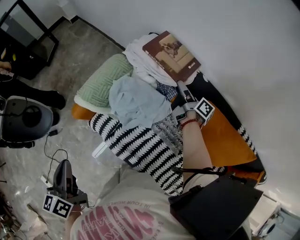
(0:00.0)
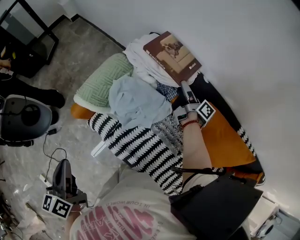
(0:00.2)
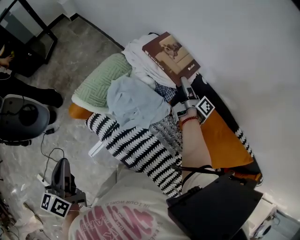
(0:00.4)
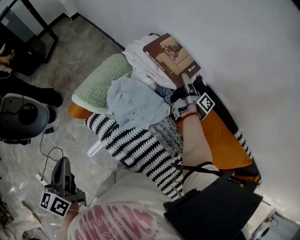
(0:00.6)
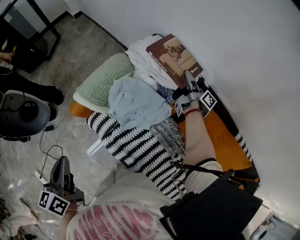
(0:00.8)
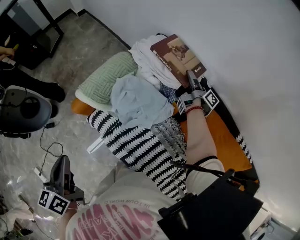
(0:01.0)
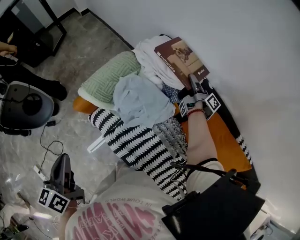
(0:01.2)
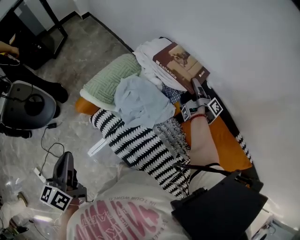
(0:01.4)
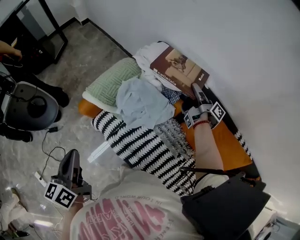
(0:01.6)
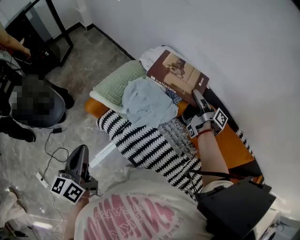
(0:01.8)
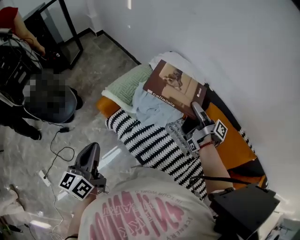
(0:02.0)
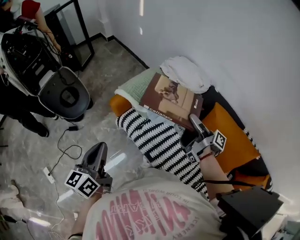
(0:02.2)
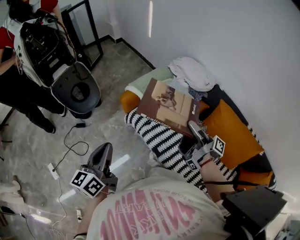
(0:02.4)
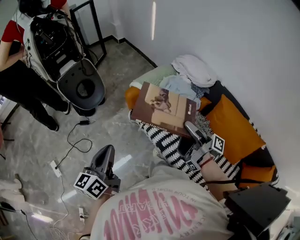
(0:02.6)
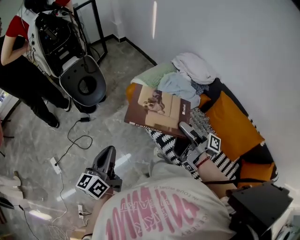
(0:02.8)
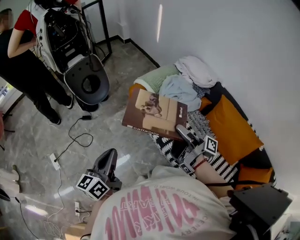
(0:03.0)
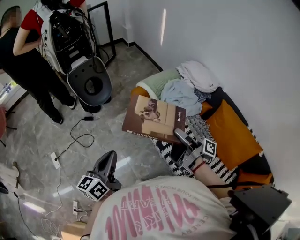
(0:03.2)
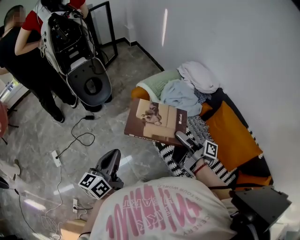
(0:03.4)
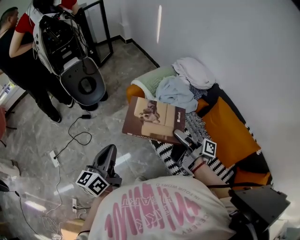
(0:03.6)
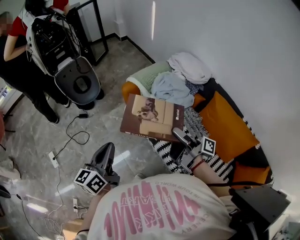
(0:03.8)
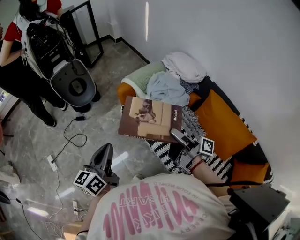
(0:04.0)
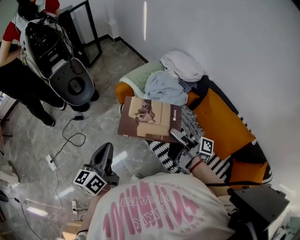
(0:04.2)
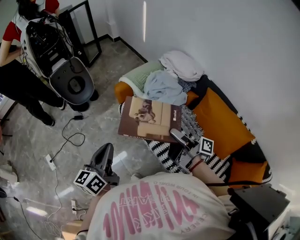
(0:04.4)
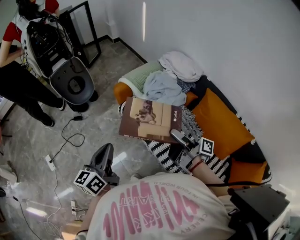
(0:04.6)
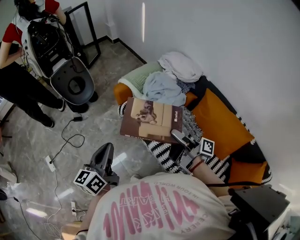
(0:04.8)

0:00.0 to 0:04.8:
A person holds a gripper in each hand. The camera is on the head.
0:00.0 to 0:01.6: The right gripper shifts some 5 cm upward.
0:01.6 to 0:03.2: The right gripper travels backward and to the left by approximately 50 cm, and swivels roughly 40 degrees; the left gripper heads backward, covering some 30 cm.
0:03.2 to 0:04.8: Both grippers move to the right, some 10 cm.

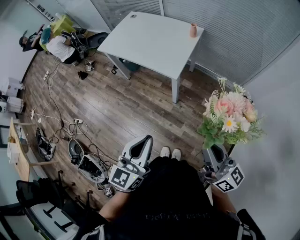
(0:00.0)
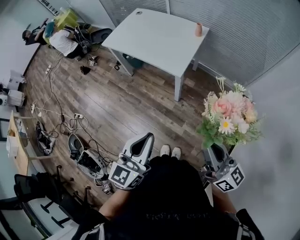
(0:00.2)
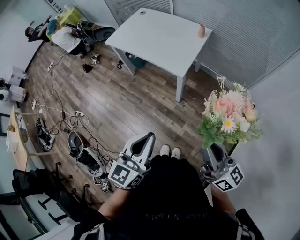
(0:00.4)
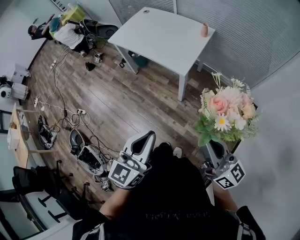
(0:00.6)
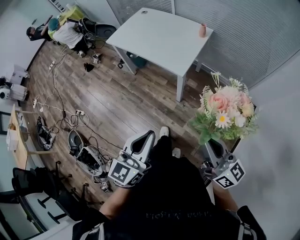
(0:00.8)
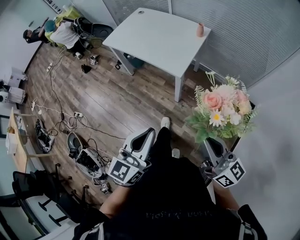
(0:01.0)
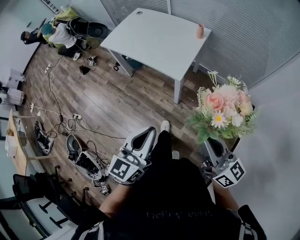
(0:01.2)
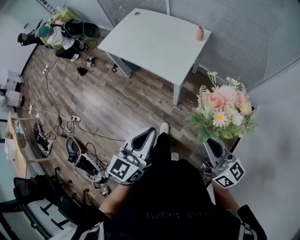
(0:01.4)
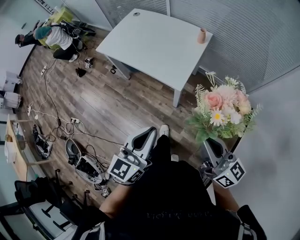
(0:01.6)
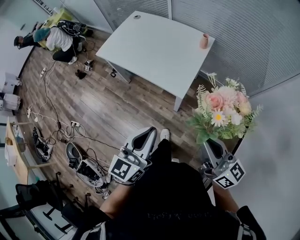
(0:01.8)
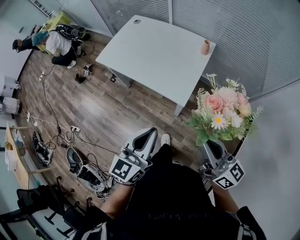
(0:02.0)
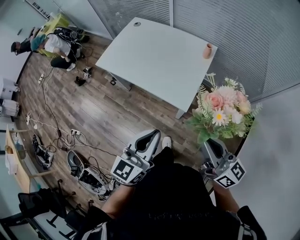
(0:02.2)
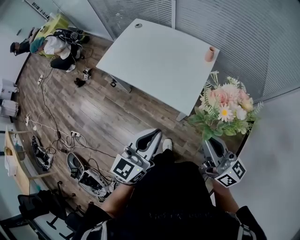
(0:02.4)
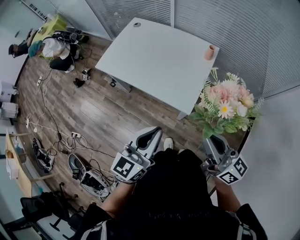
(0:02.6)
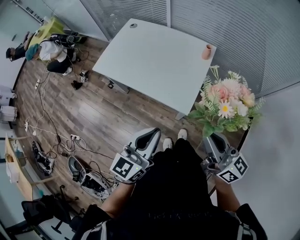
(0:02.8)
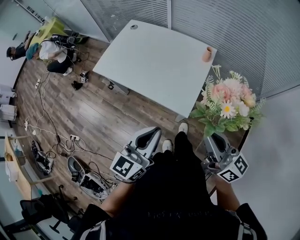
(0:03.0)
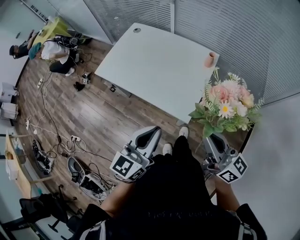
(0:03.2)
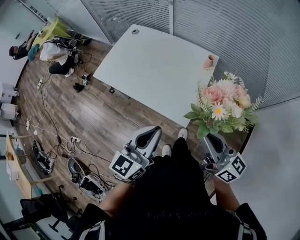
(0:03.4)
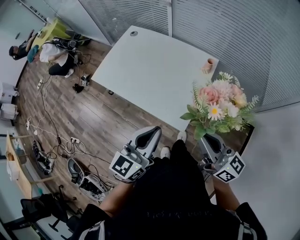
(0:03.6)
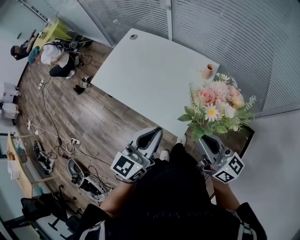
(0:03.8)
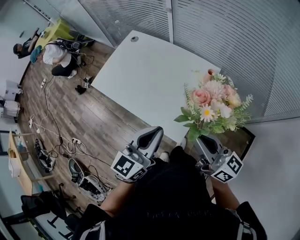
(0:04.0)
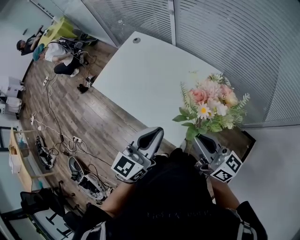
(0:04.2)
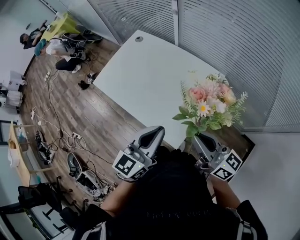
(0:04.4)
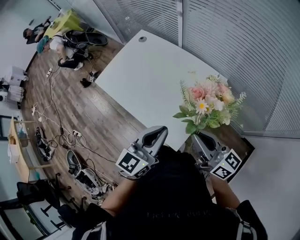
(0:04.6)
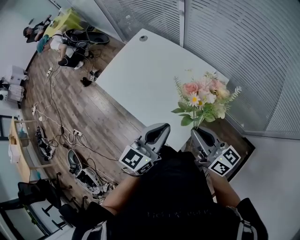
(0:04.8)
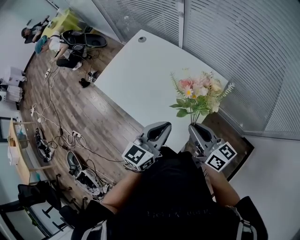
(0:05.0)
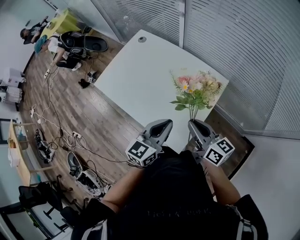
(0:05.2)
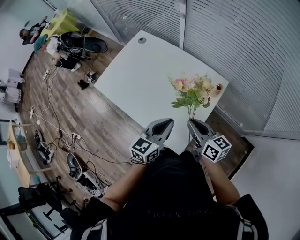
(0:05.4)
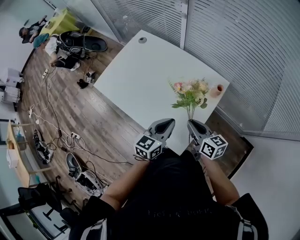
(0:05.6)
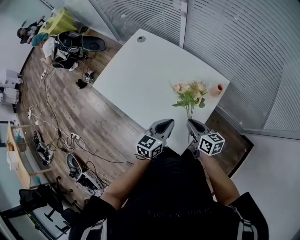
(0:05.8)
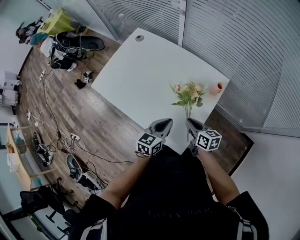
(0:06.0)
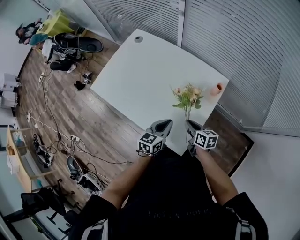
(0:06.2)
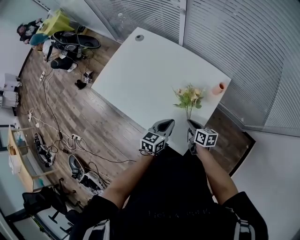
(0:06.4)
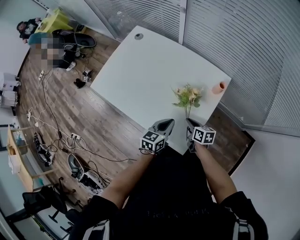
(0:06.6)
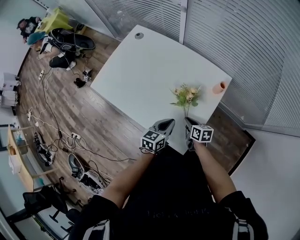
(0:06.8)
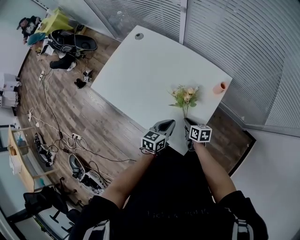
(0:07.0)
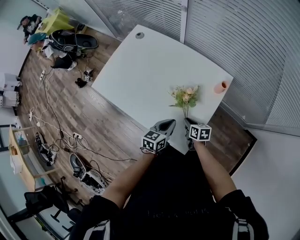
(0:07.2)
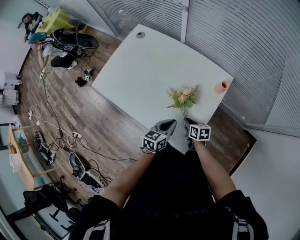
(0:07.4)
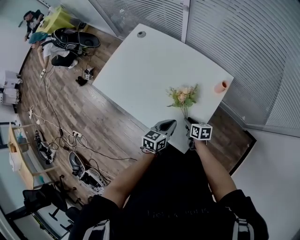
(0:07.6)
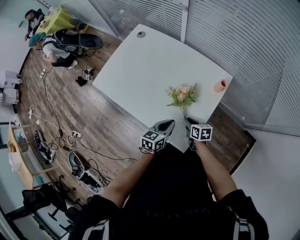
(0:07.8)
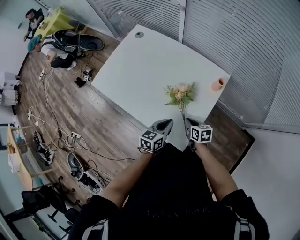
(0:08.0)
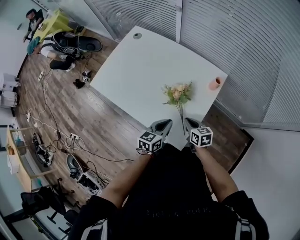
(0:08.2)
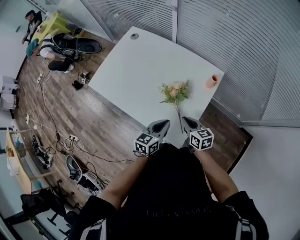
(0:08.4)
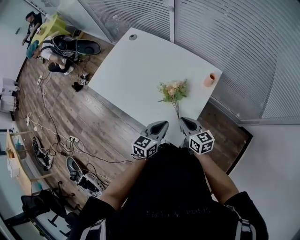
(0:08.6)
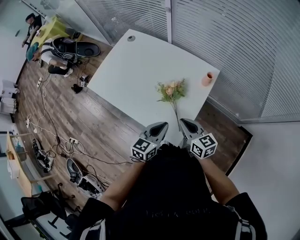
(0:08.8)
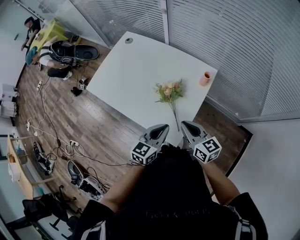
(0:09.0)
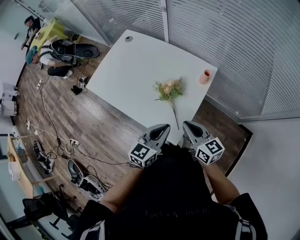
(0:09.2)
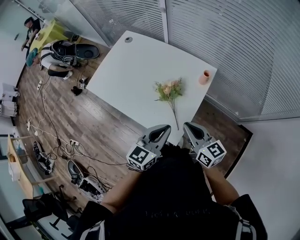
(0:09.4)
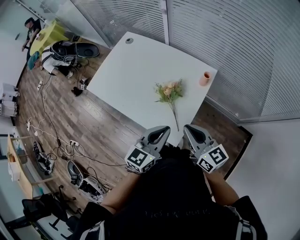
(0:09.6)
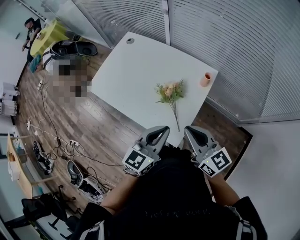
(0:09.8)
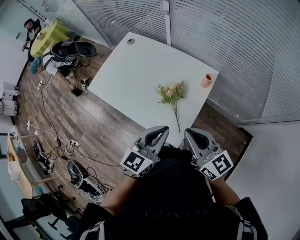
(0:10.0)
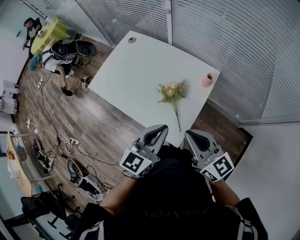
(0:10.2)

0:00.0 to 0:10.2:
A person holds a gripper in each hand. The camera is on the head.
0:00.0 to 0:01.4: The grippers both shift forward by some 10 cm.
0:01.4 to 0:03.0: The grippers both shift forward by approximately 20 cm.
0:03.0 to 0:04.4: The left gripper is displaced forward and to the right by some 20 cm, while the right gripper goes approximately 15 cm forward.
0:04.4 to 0:05.8: The grippers both shift downward and forward by approximately 20 cm. The right gripper angles its fingers downward, by some 30 degrees.
0:05.8 to 0:07.2: The left gripper goes roughly 5 cm downward, while the right gripper moves downward, approximately 15 cm, and changes its angle by roughly 20 degrees.
0:07.2 to 0:08.8: The left gripper moves upward and backward, roughly 10 cm. The right gripper goes roughly 20 cm upward, and swivels roughly 30 degrees.
0:08.8 to 0:10.2: Both grippers move upward, about 15 cm.

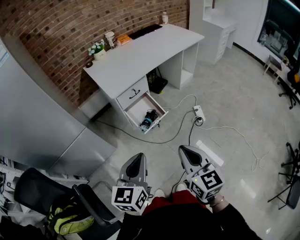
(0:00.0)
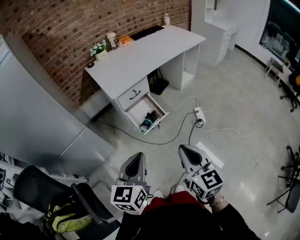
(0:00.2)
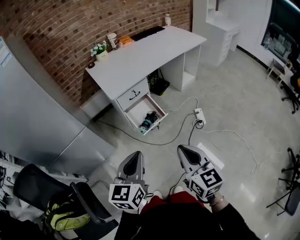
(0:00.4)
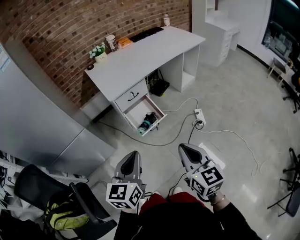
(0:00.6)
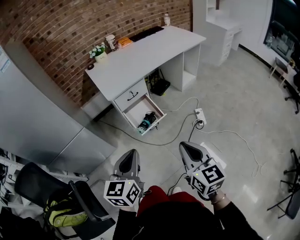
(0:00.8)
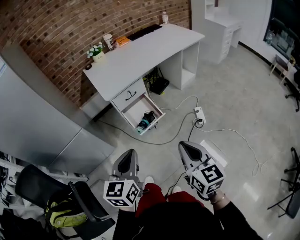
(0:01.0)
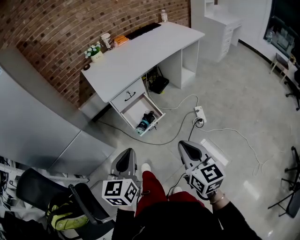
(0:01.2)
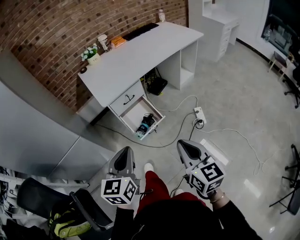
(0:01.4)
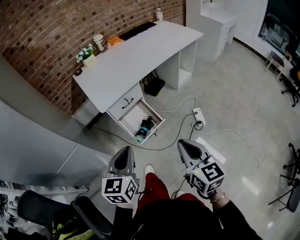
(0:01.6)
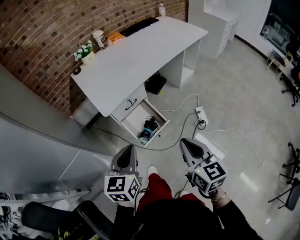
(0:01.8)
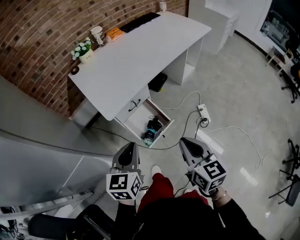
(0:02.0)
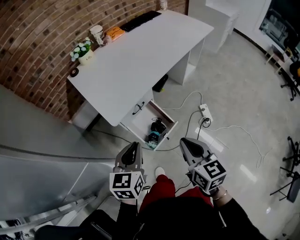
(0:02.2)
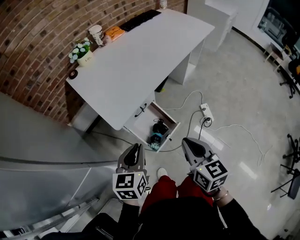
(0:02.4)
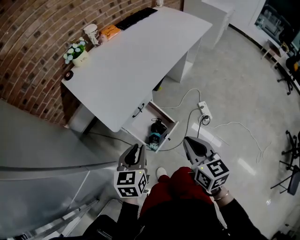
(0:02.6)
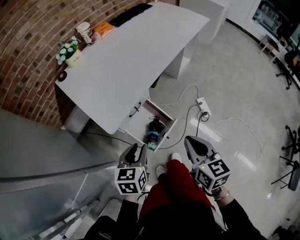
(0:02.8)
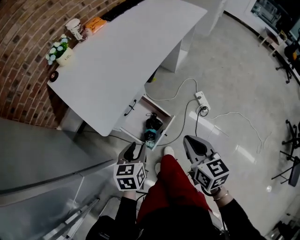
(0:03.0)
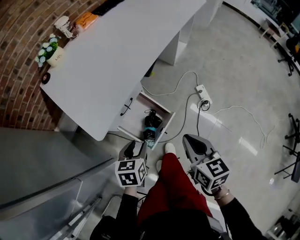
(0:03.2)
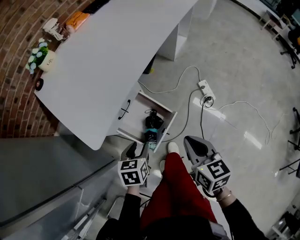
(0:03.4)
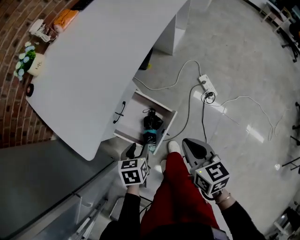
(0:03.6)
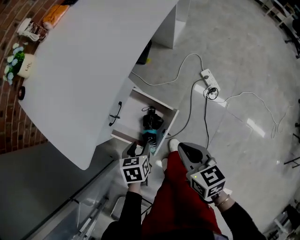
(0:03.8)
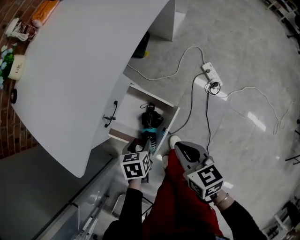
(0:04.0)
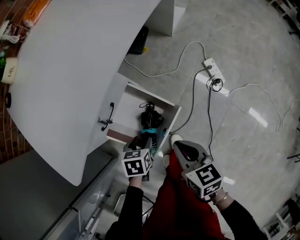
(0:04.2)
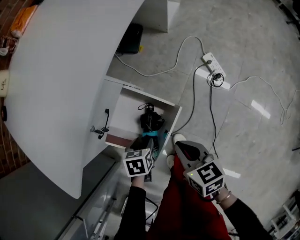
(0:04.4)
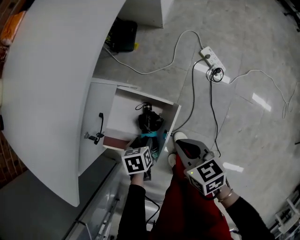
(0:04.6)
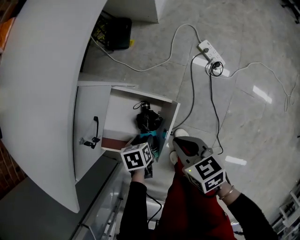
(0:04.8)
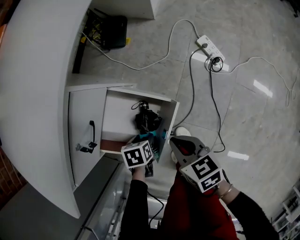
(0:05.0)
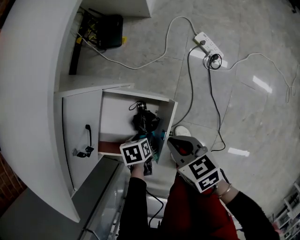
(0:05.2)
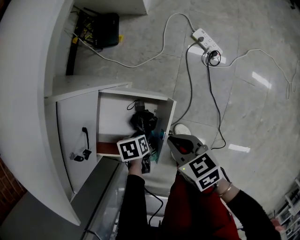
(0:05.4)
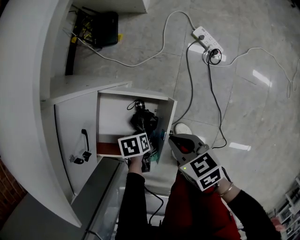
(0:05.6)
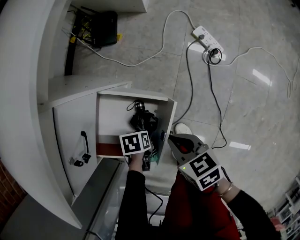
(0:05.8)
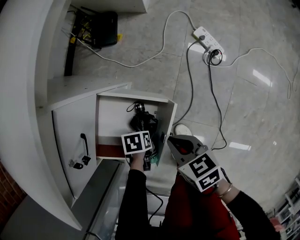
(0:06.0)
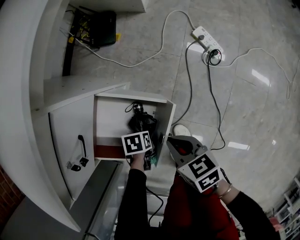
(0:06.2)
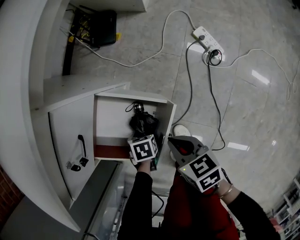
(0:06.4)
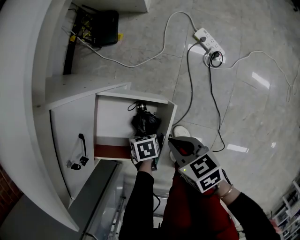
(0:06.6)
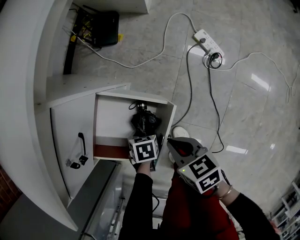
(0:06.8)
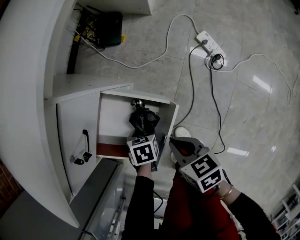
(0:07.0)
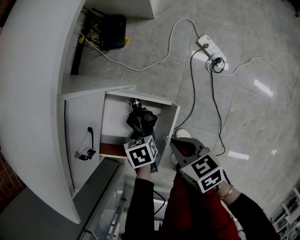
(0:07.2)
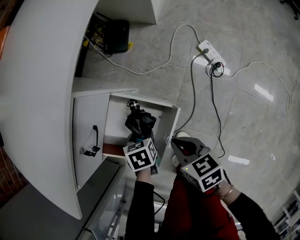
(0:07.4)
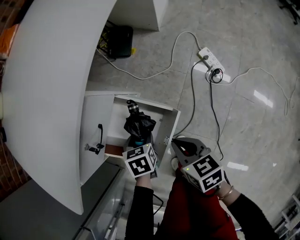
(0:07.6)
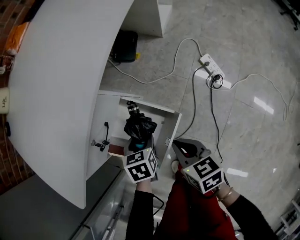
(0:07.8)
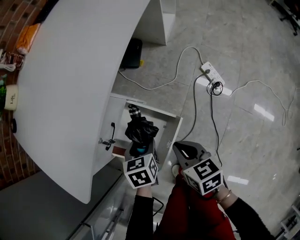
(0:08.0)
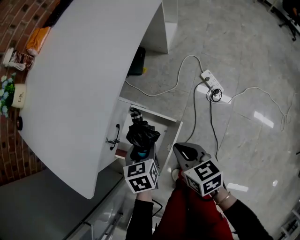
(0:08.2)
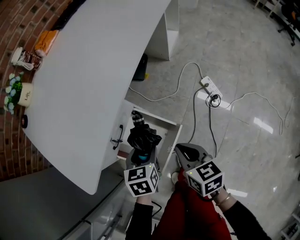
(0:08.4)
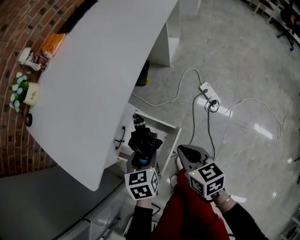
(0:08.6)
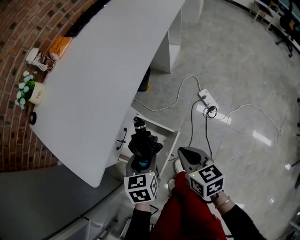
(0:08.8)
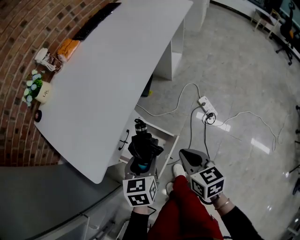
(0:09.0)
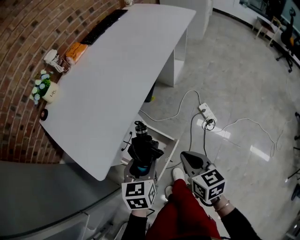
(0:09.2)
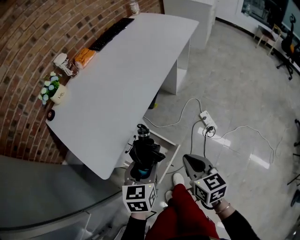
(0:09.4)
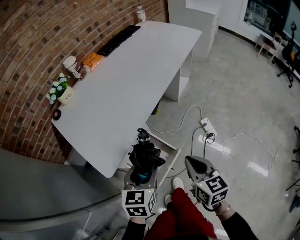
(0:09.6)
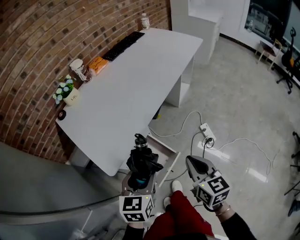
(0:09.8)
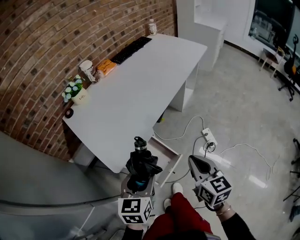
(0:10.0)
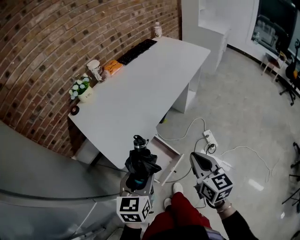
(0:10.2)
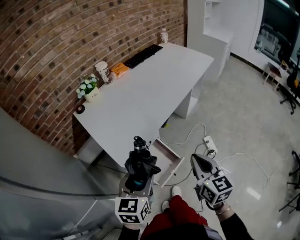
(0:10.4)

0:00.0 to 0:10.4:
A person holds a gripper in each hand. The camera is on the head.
0:00.0 to 0:01.4: The right gripper moves forward and to the right, about 10 cm. The left gripper is displaced forward by some 10 cm.
0:01.4 to 0:03.0: The right gripper moves forward, to the left and downward, roughly 25 cm, and swivels approximately 20 degrees; the left gripper heads forward and downward, covering about 30 cm, turns by approximately 30 degrees, and opens.
0:03.0 to 0:04.4: The grippers both shift downward by some 30 cm. The left gripper swivels some 30 degrees.
0:04.4 to 0:06.0: The grippers both shift downward by some 10 cm. The left gripper changes its angle by about 20 degrees.
0:06.0 to 0:07.4: The left gripper heads upward, covering some 10 cm, and rotates roughly 30 degrees.
0:07.4 to 0:09.0: Both grippers travel together upward, roughly 25 cm. The left gripper turns by approximately 30 degrees.
0:09.0 to 0:10.4: The left gripper is displaced upward and backward by approximately 25 cm. Meanwhile the right gripper goes some 20 cm upward, and rotates roughly 20 degrees.
